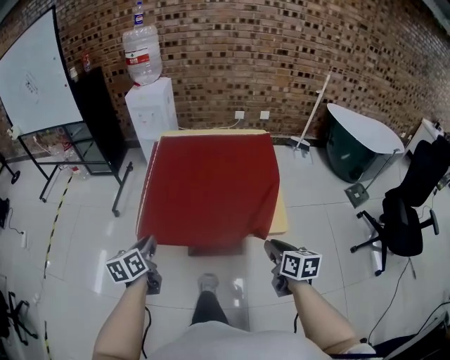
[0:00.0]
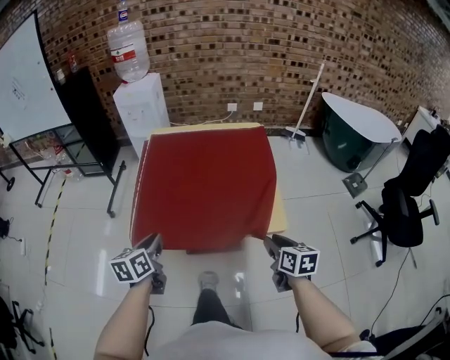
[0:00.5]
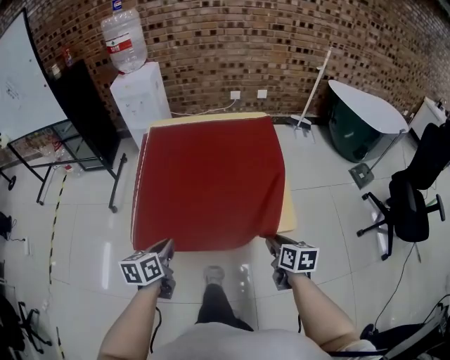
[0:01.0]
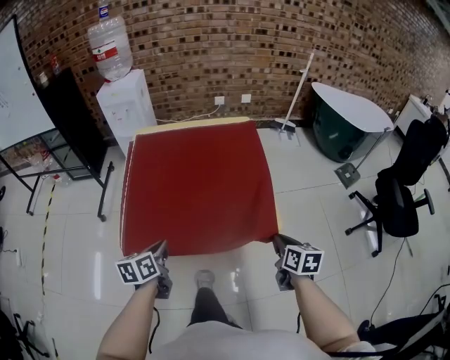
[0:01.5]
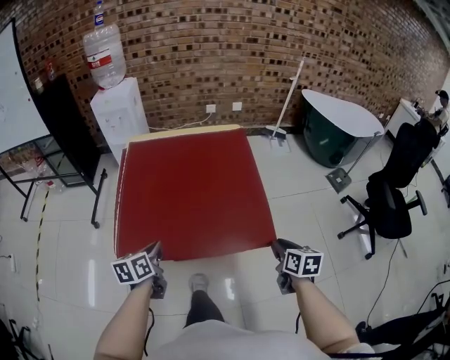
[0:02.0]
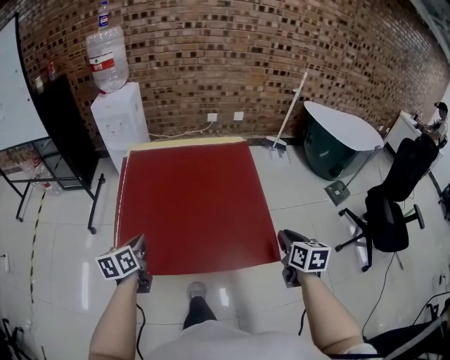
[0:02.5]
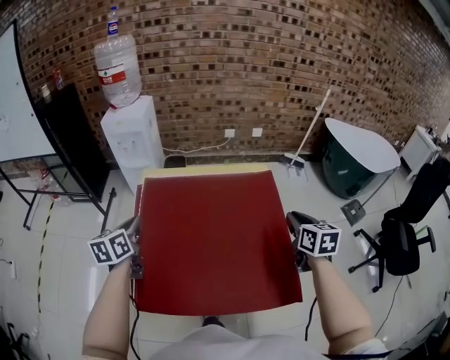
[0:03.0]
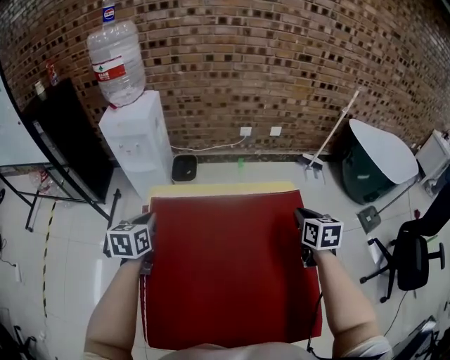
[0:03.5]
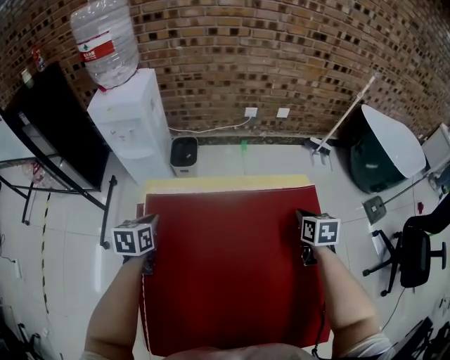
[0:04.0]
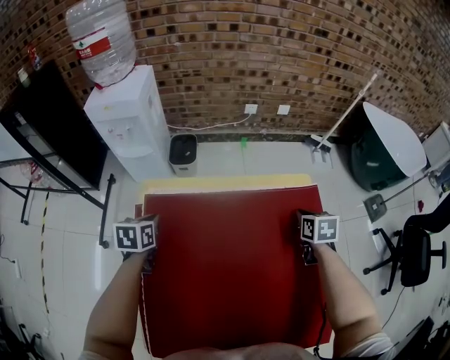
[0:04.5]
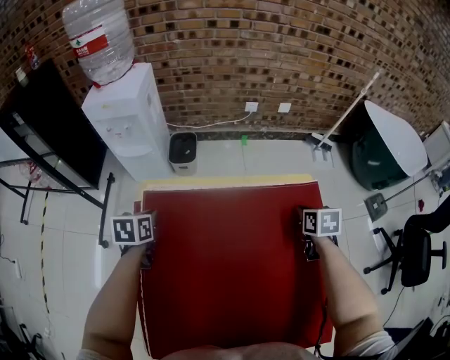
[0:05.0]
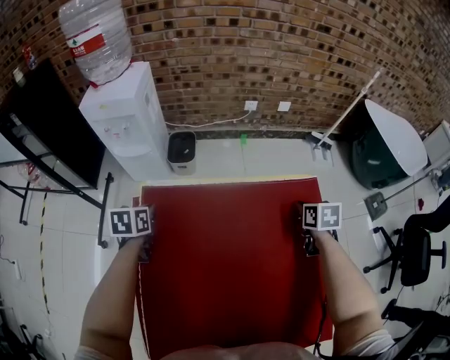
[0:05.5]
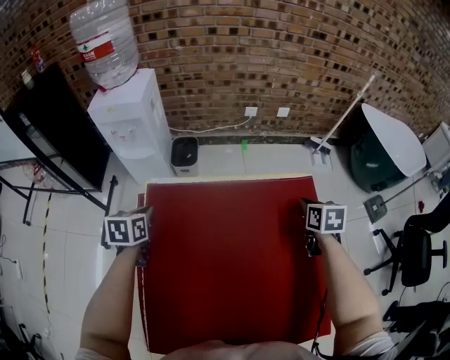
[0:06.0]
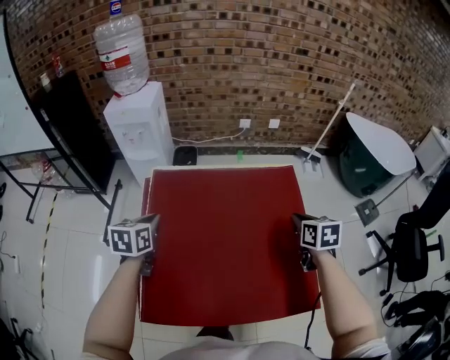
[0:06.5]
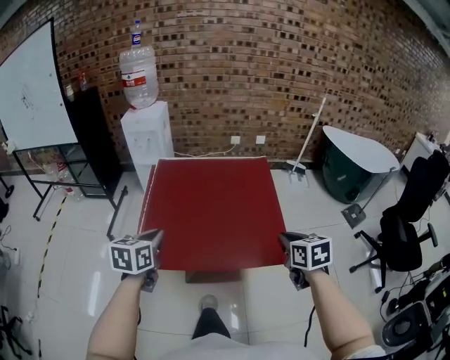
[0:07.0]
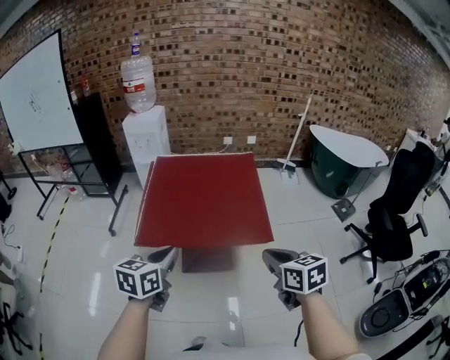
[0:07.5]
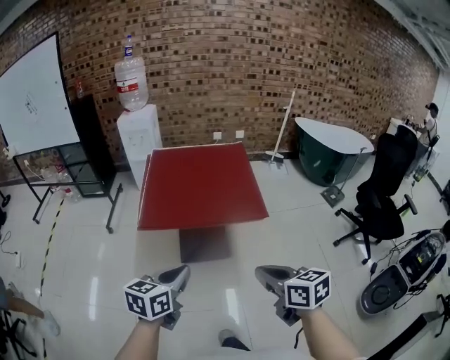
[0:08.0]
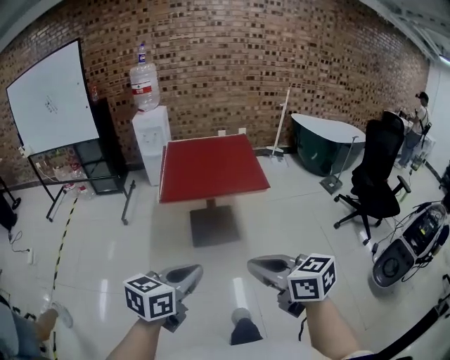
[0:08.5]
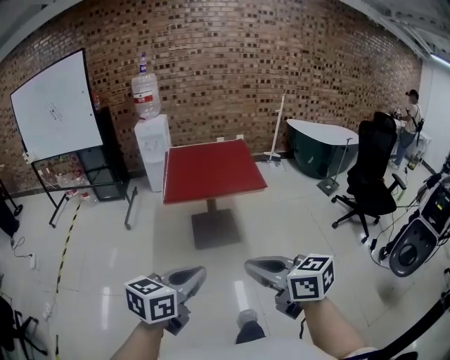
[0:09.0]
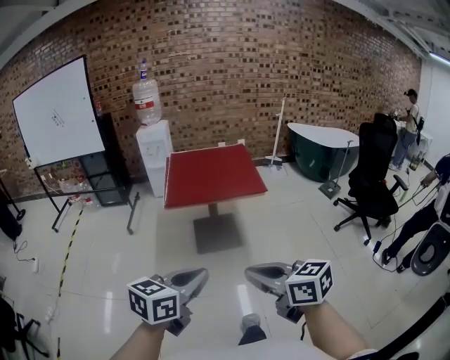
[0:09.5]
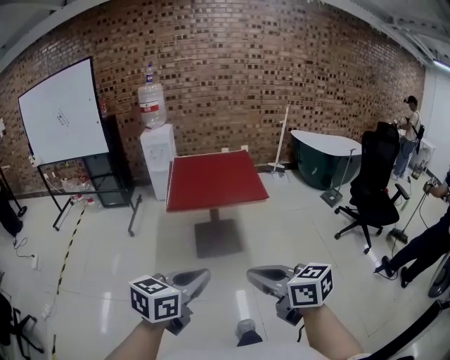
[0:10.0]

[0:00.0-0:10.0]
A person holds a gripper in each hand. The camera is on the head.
0:00.0 to 0:02.0: The right gripper goes about 10 cm to the right, while the left gripper is displaced to the right and forward by roughly 10 cm.
0:02.0 to 0:04.0: The pair of grippers is taken forward, about 50 cm.
0:04.0 to 0:06.0: There are only small adjustments of the grippers.
0:06.0 to 0:08.0: The pair of grippers is taken backward, about 80 cm. The right gripper changes its angle by some 30 degrees; the left gripper swivels roughly 30 degrees.
0:08.0 to 0:10.0: The two grippers go some 30 cm backward.

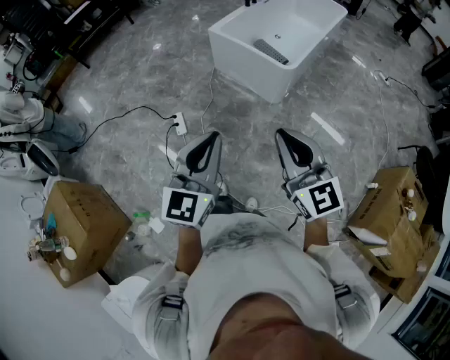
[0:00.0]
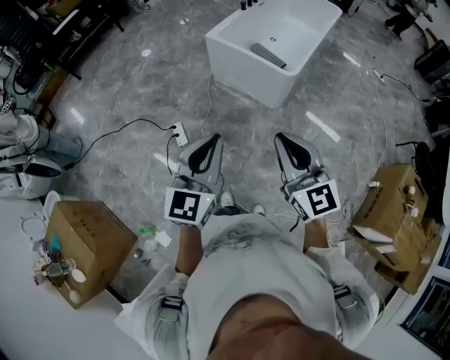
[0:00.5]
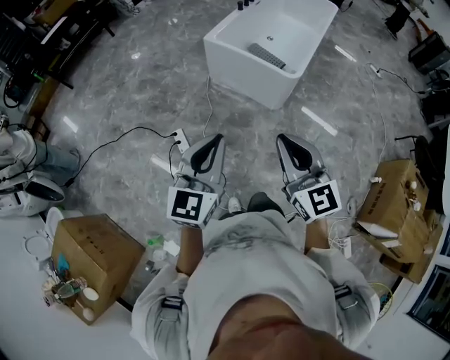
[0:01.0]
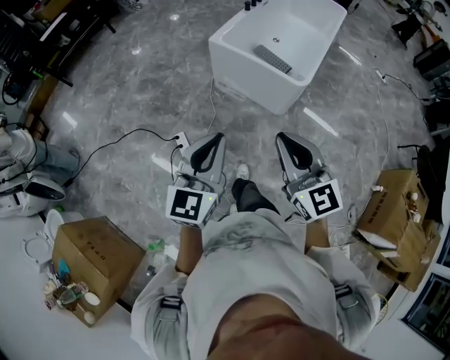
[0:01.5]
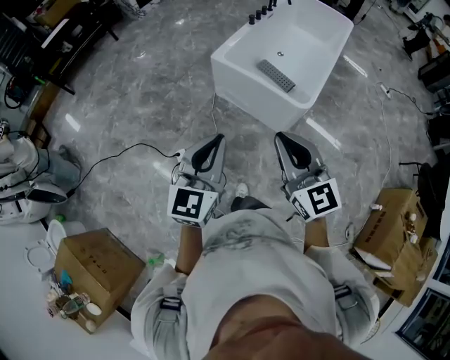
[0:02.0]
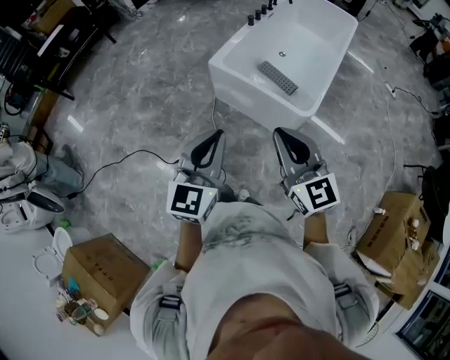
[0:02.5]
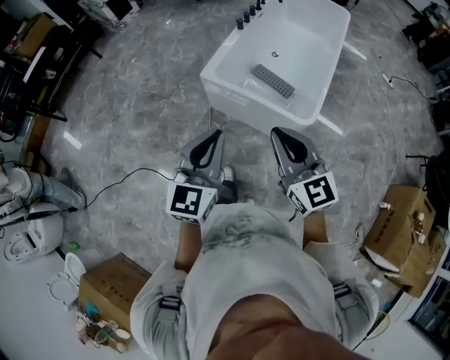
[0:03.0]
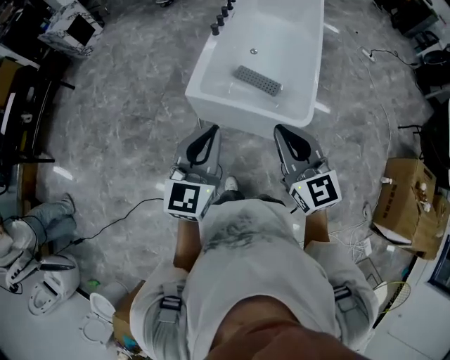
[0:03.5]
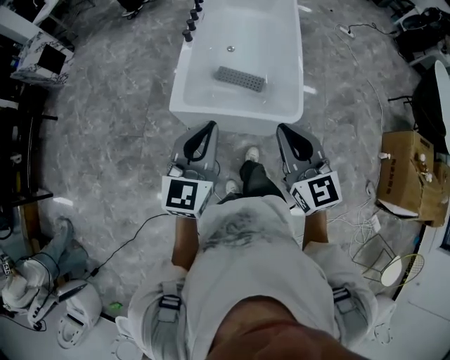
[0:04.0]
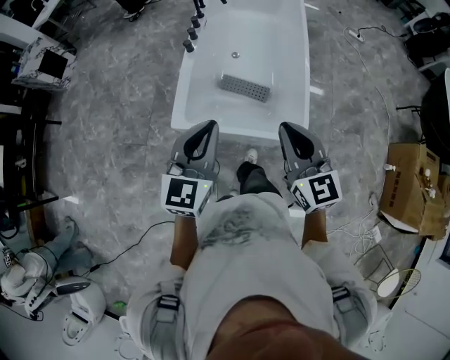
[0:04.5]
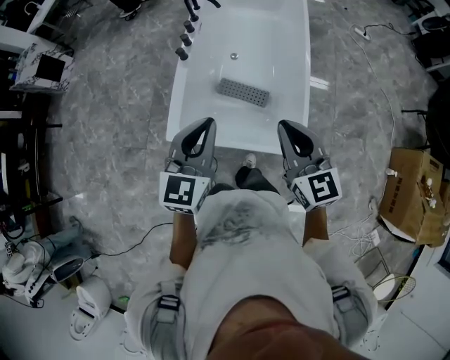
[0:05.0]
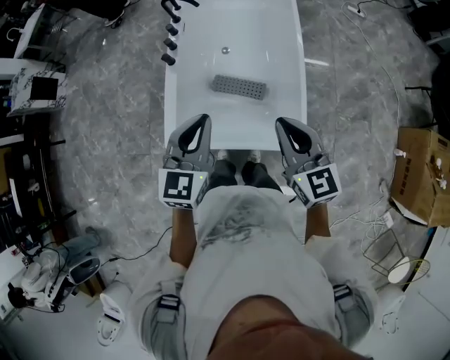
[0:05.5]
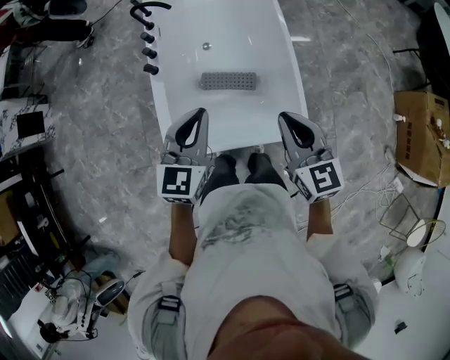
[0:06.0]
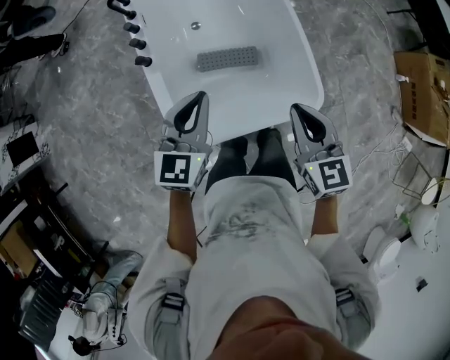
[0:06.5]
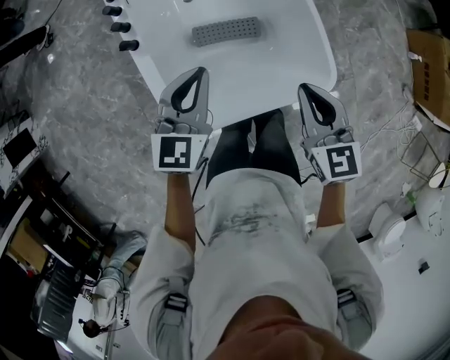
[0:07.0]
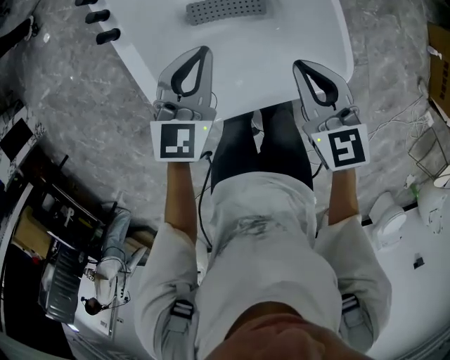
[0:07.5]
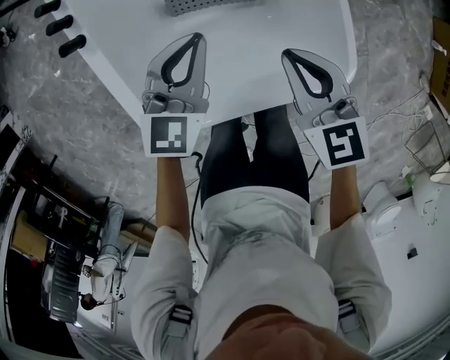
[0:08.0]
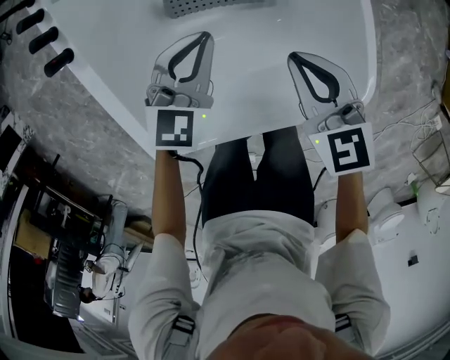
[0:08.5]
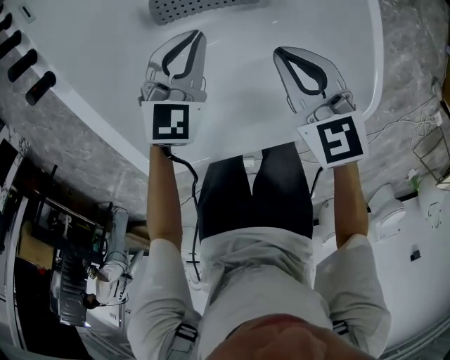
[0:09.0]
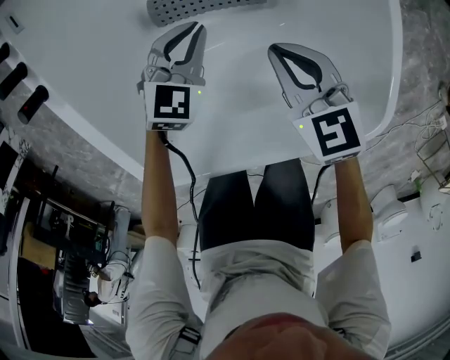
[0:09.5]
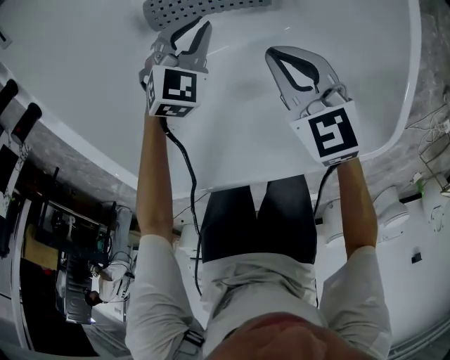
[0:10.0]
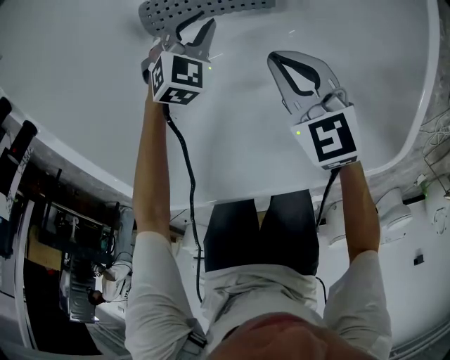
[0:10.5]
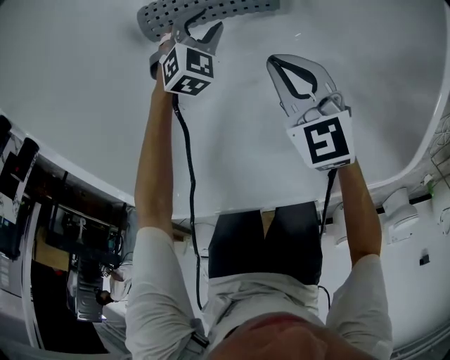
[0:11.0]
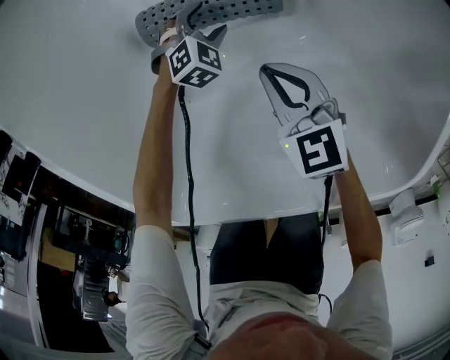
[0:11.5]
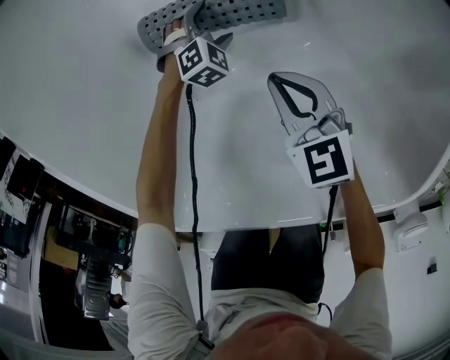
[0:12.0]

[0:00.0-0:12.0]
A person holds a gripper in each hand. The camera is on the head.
0:00.0 to 0:02.0: The two grippers go about 35 cm forward.
0:02.0 to 0:04.0: The left gripper changes place by about 40 cm, and swivels about 30 degrees. Meanwhile the right gripper changes place by approximately 35 cm, and turns by about 30 degrees.
0:04.0 to 0:06.0: The grippers both shift forward by approximately 35 cm. The right gripper changes its angle by about 20 degrees.
0:06.0 to 0:08.0: The left gripper travels downward and forward by approximately 35 cm. The right gripper heads downward, covering roughly 30 cm.
0:08.0 to 0:10.0: The grippers both shift downward by some 30 cm. The left gripper swivels roughly 30 degrees.
0:10.0 to 0:12.0: The left gripper travels downward by about 20 cm, changes its angle by approximately 30 degrees, and opens. The right gripper goes roughly 10 cm downward.

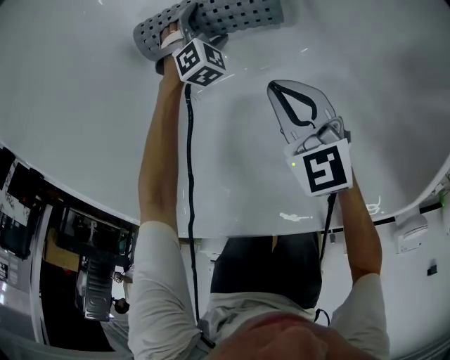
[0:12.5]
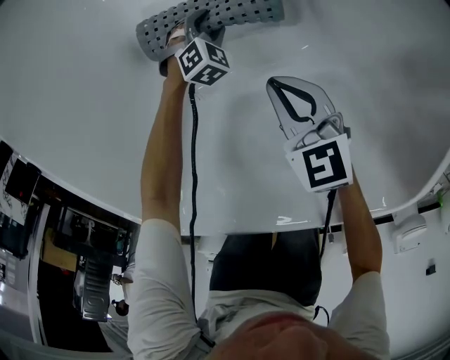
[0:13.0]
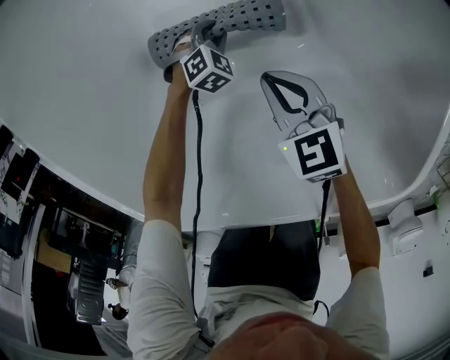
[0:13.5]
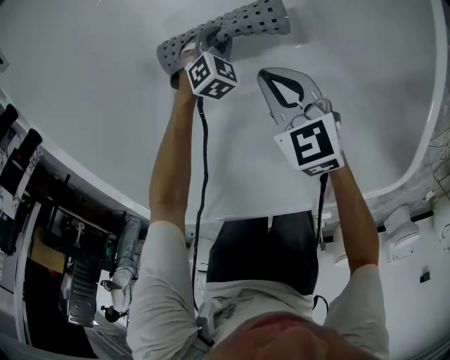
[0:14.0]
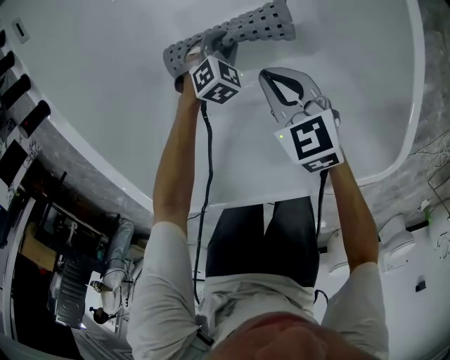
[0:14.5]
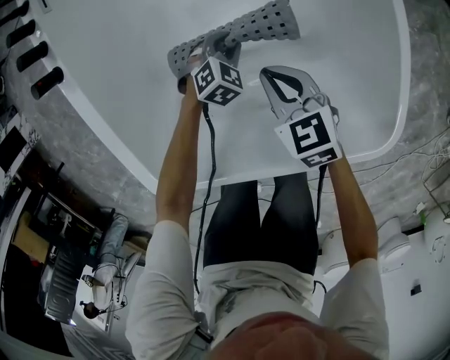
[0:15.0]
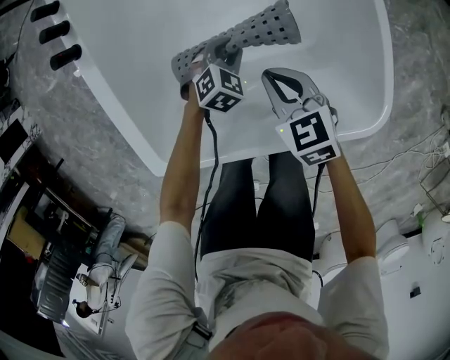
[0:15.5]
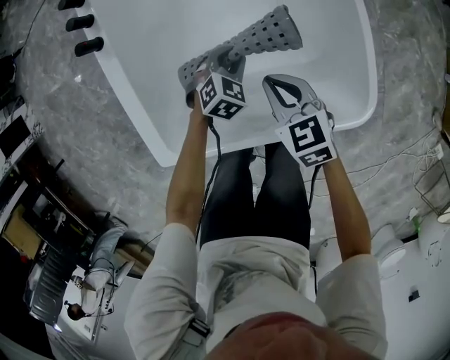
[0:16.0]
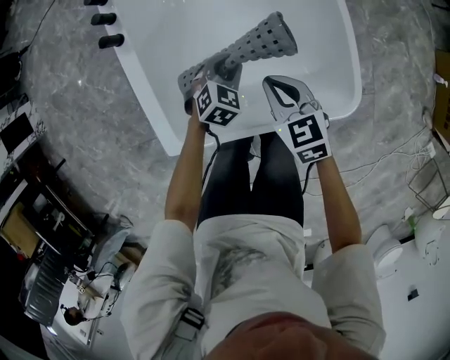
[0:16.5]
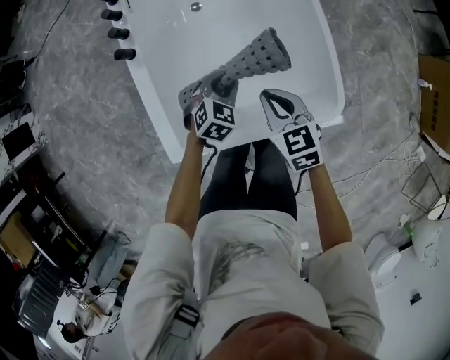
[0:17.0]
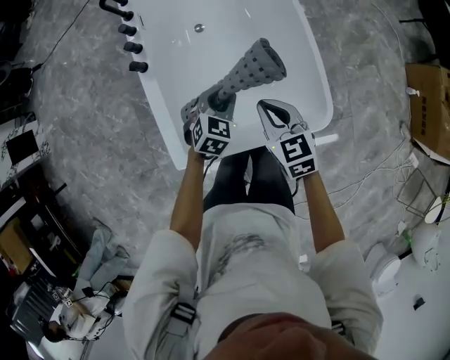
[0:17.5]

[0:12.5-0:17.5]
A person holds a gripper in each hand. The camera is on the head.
0:12.5 to 0:15.0: The left gripper moves upward, about 20 cm, and closes its fingers. Meanwhile the right gripper heads upward, covering roughly 15 cm.
0:15.0 to 0:17.5: The grippers both shift upward by about 40 cm. The left gripper changes its angle by approximately 20 degrees.
